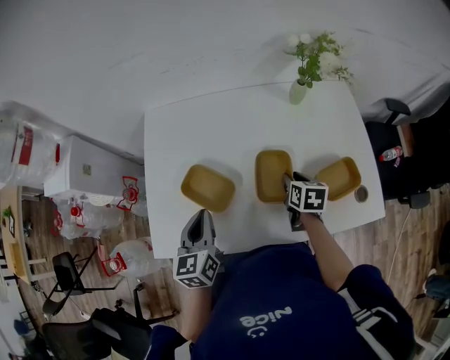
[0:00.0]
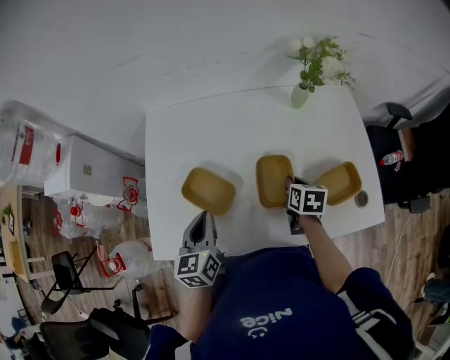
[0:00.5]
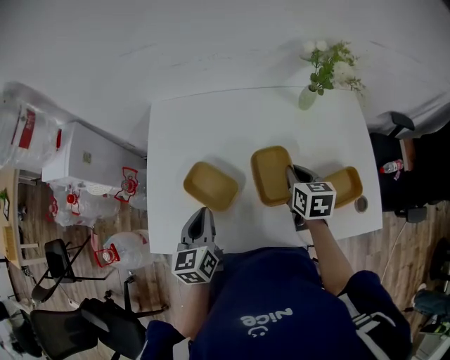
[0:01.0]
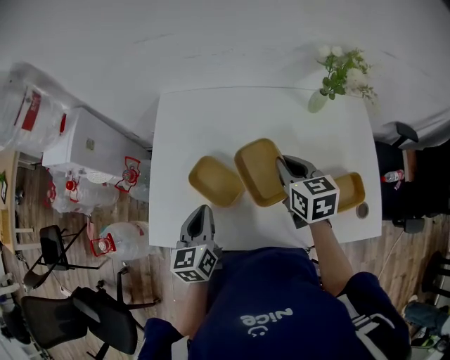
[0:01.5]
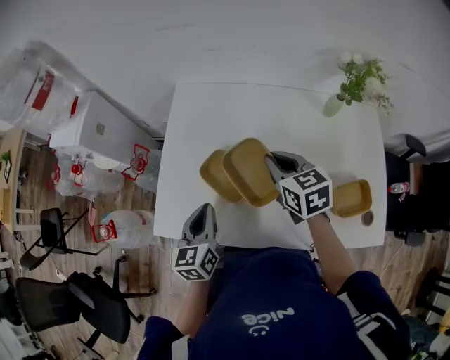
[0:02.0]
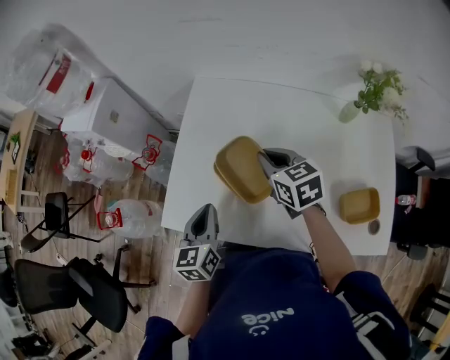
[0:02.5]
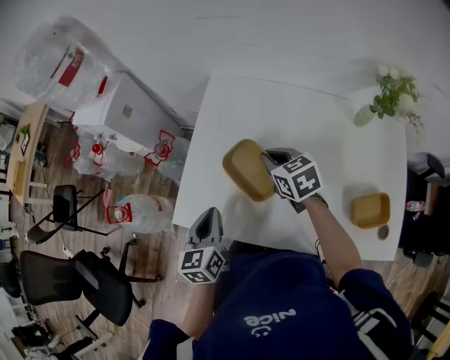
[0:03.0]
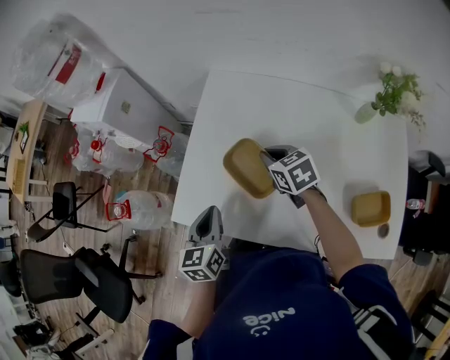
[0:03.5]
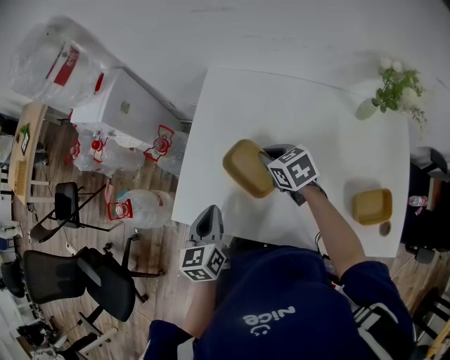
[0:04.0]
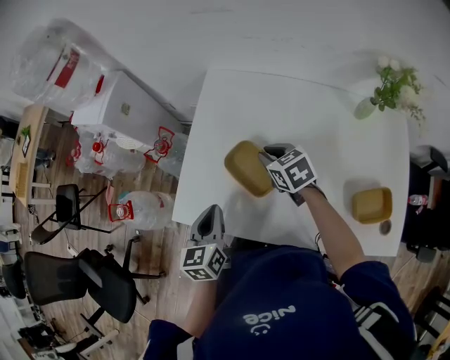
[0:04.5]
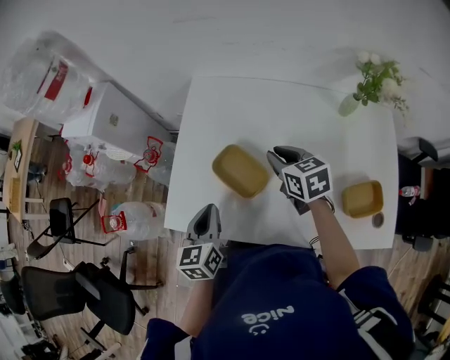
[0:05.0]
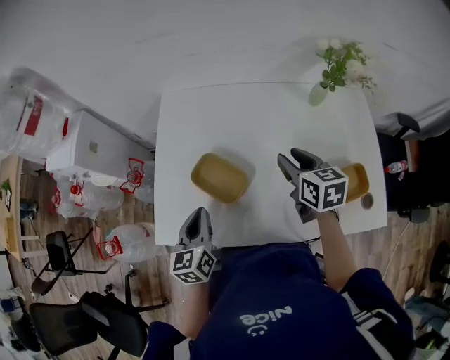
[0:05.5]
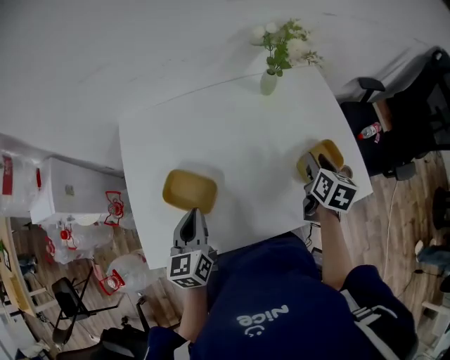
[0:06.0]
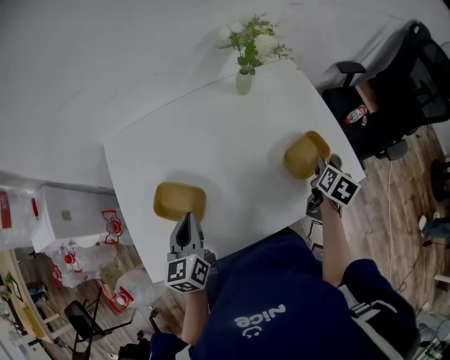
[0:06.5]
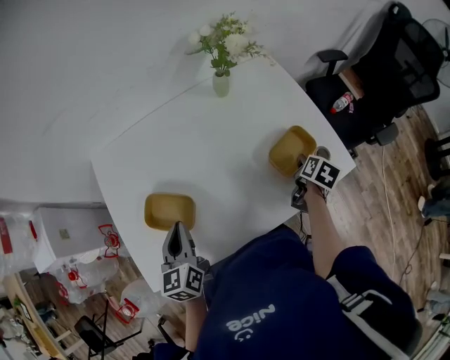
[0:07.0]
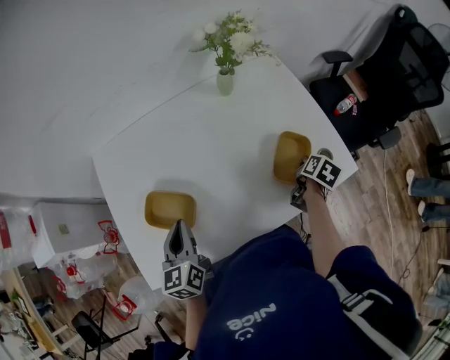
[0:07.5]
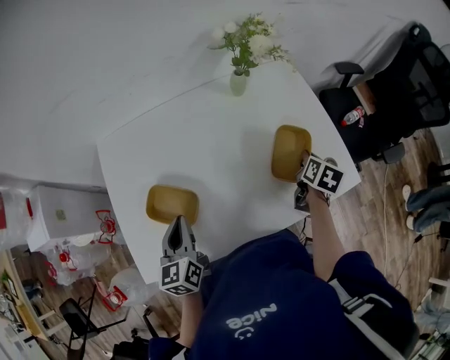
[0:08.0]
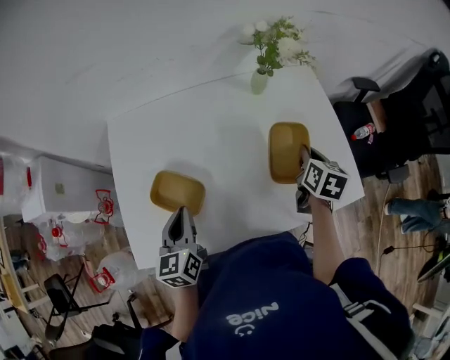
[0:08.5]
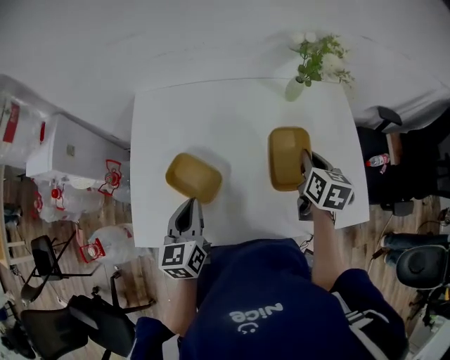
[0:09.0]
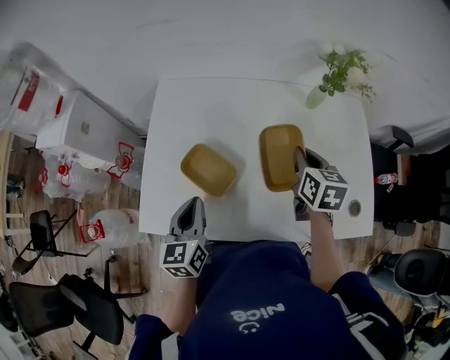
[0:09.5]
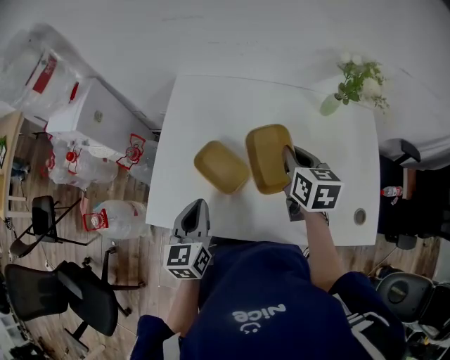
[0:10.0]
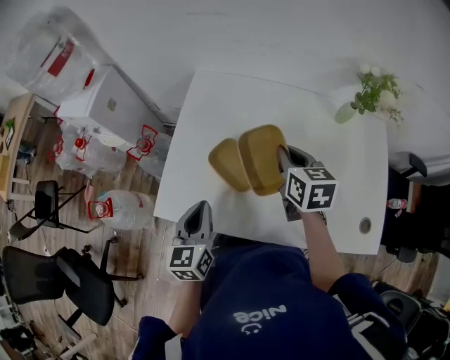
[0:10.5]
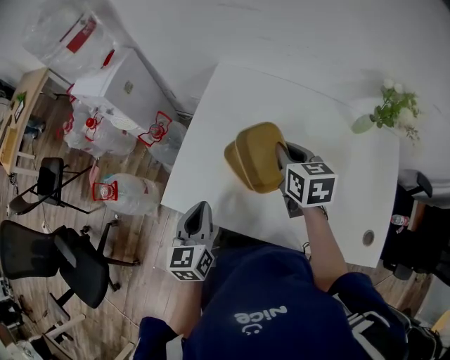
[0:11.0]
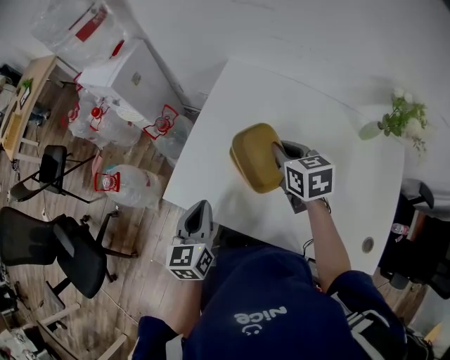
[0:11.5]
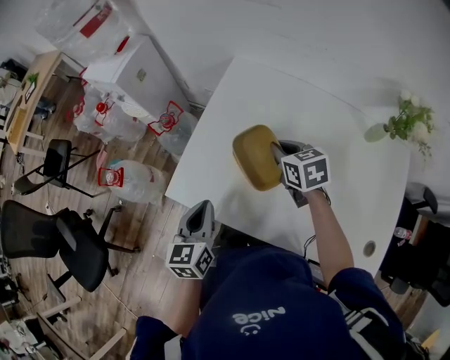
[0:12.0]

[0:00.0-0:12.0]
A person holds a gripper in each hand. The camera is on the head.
0:00.0 to 0:02.0: The right gripper moves to the left and upward, some 20 cm, rotates some 40 degrees, and closes, while the left gripper changes place by some 5 cm.
0:02.0 to 0:04.0: The left gripper heads to the left, covering roughly 5 cm. Meanwhile the right gripper is displaced downward, to the left and forward by some 15 cm, and swivels roughly 20 degrees.
0:04.0 to 0:06.0: The right gripper changes place by some 40 cm, turns by approximately 80 degrees, and opens, while the left gripper shifts by roughly 15 cm, and rotates some 30 degrees.
0:06.0 to 0:08.0: The right gripper heads to the right, covering about 10 cm, and closes up.
0:08.0 to 0:10.0: The left gripper changes place by about 10 cm, while the right gripper ends up about 30 cm from where it was, and rotates some 50 degrees.
0:10.0 to 0:12.0: The right gripper shifts about 20 cm to the left, forward and downward, and rotates about 40 degrees. The left gripper shifts some 5 cm to the left.

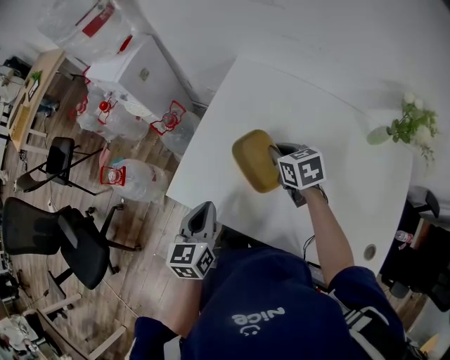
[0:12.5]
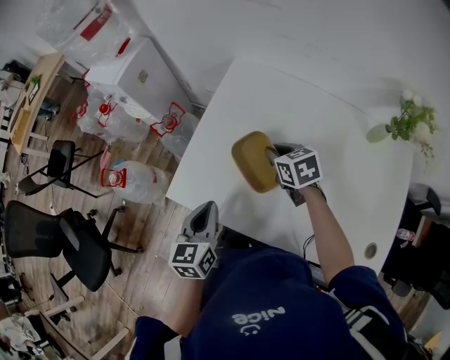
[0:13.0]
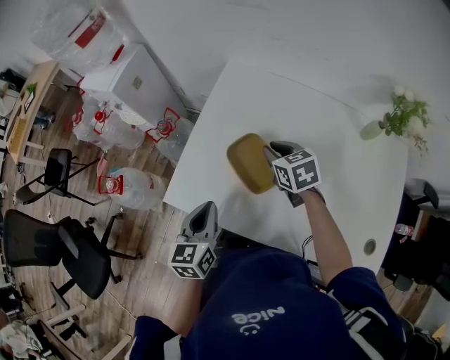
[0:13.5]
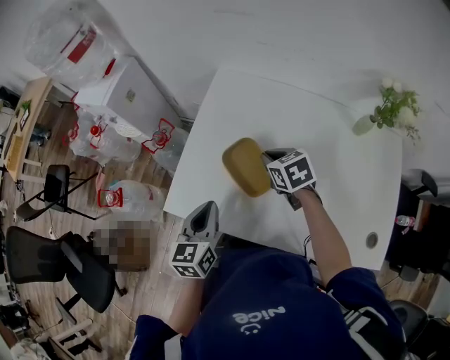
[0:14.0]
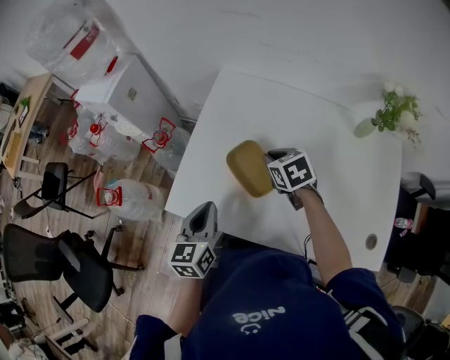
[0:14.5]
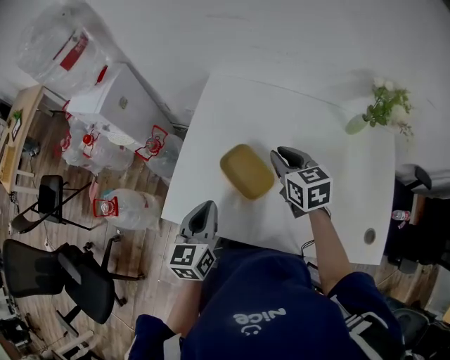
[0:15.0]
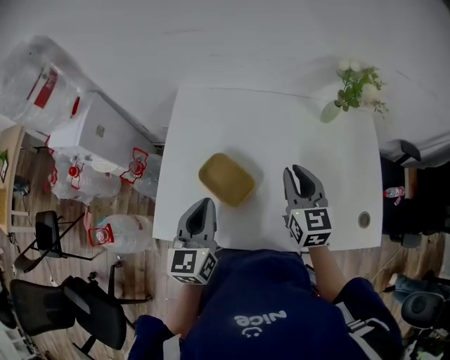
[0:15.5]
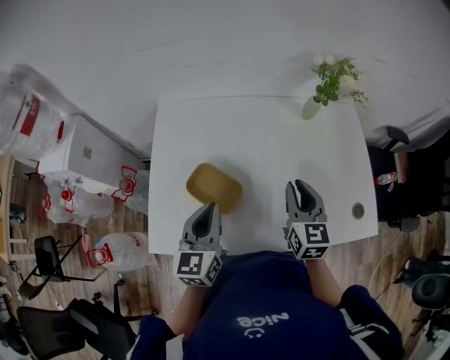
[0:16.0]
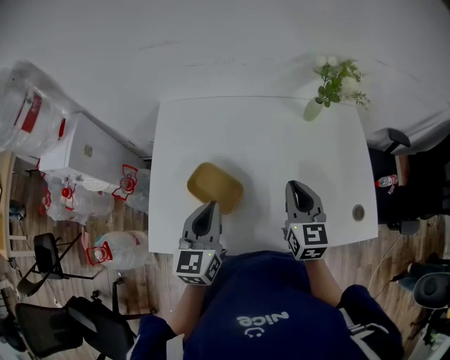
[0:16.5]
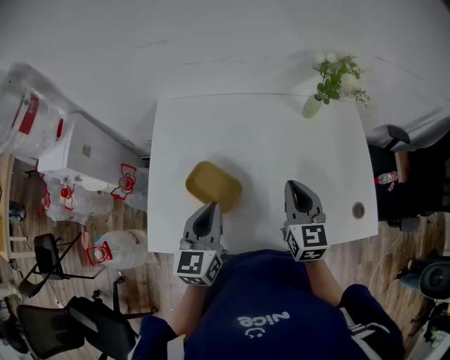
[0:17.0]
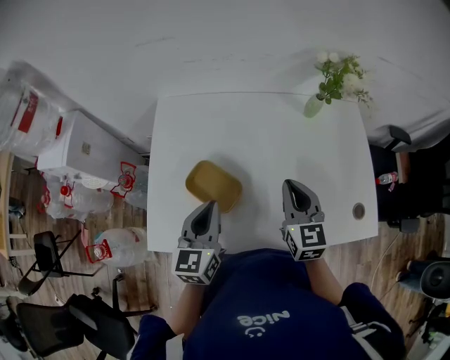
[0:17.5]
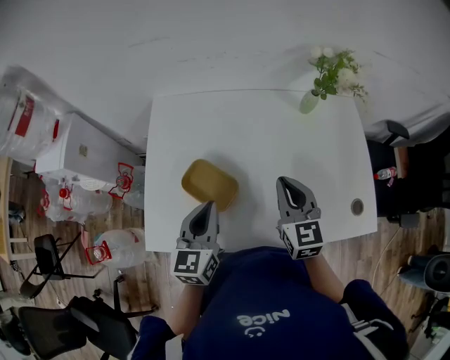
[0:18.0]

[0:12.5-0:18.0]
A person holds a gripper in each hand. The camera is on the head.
0:12.5 to 0:14.5: There are only small adjustments of the grippers.
0:14.5 to 0:16.0: The left gripper ends up approximately 15 cm from where it was, and turns by some 20 degrees; the right gripper changes place by about 25 cm, and tips its fingers upward by roughly 30 degrees.
0:16.0 to 0:18.0: The grippers make only small movements.

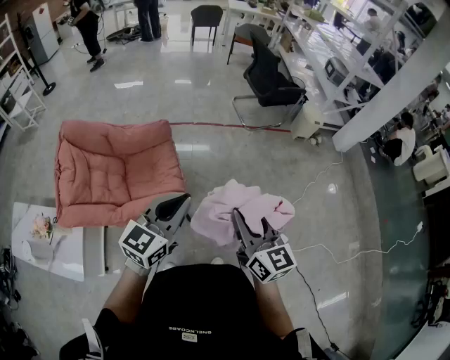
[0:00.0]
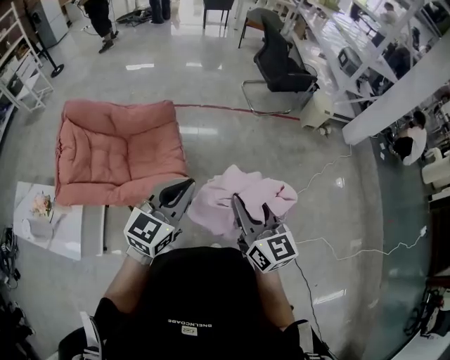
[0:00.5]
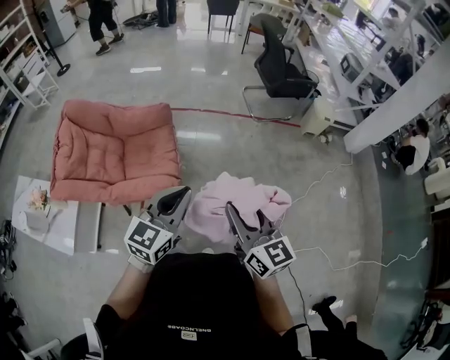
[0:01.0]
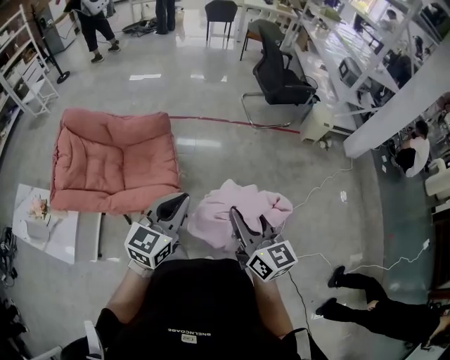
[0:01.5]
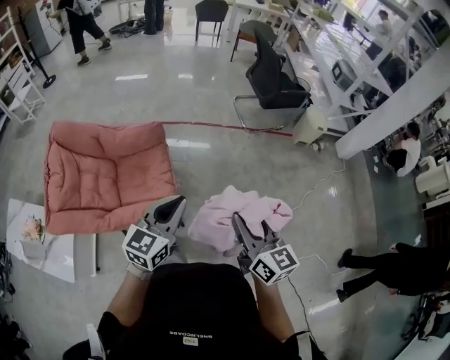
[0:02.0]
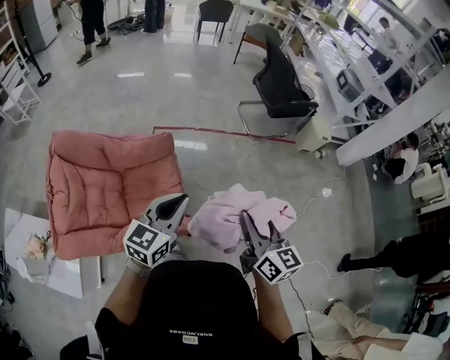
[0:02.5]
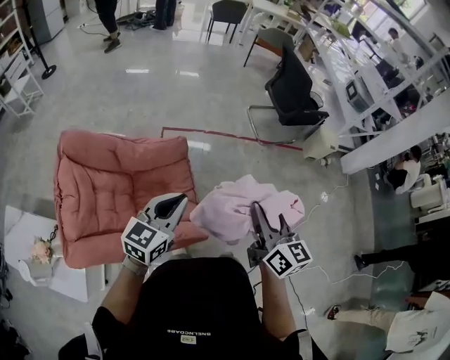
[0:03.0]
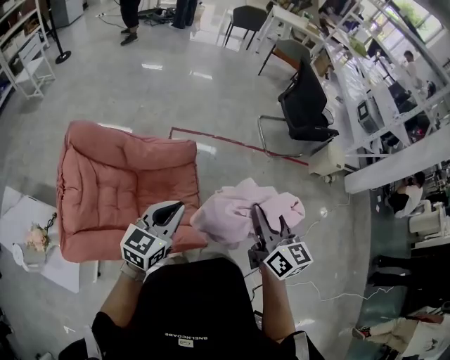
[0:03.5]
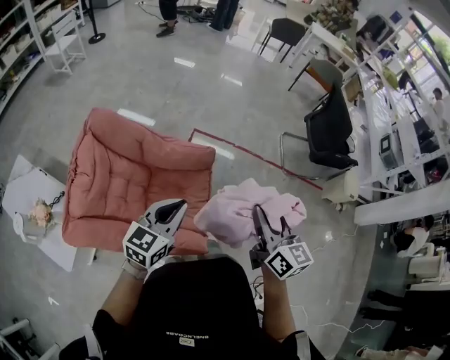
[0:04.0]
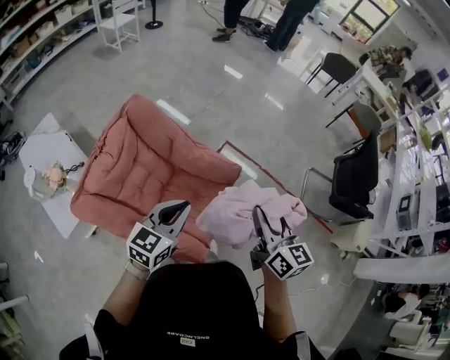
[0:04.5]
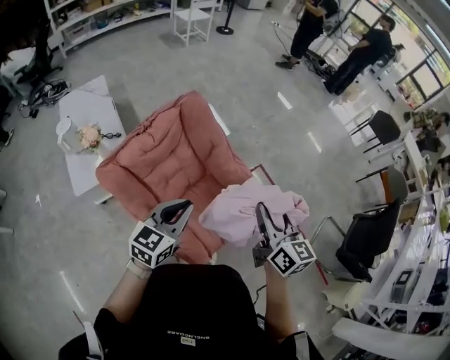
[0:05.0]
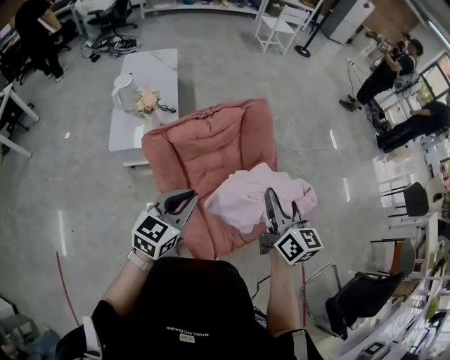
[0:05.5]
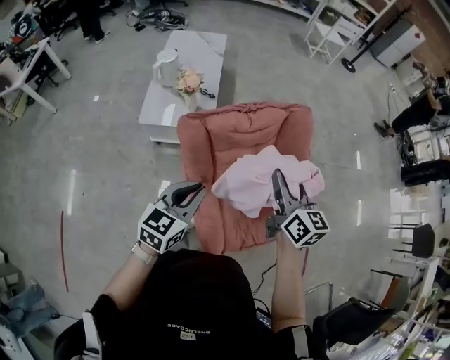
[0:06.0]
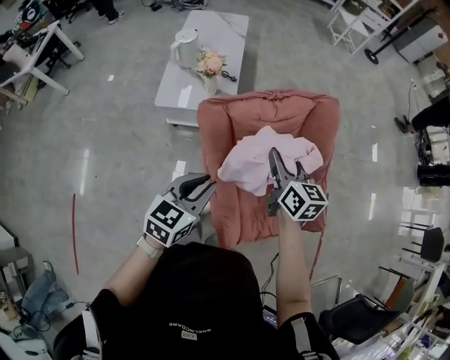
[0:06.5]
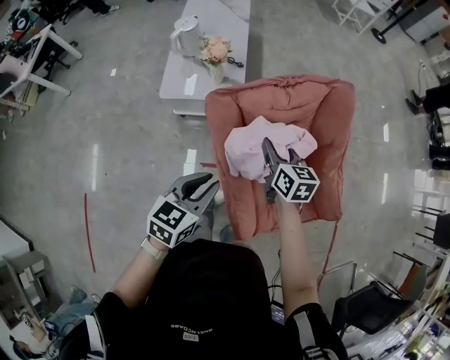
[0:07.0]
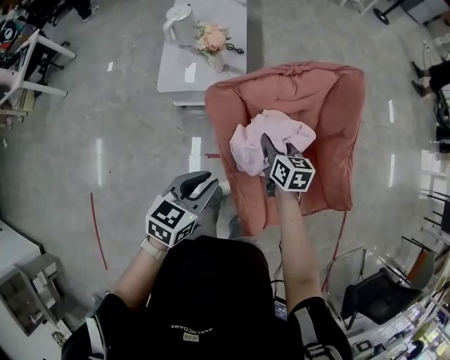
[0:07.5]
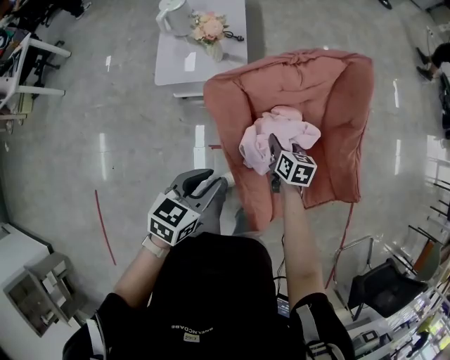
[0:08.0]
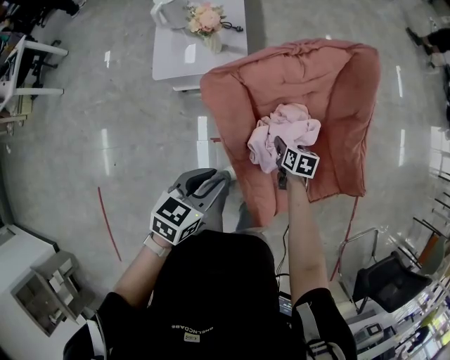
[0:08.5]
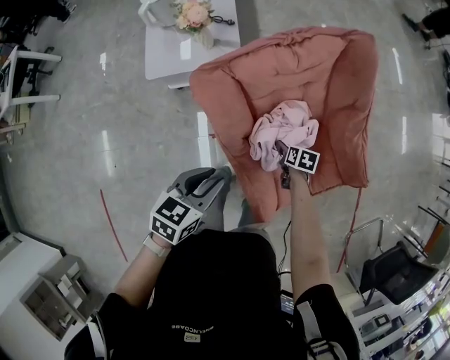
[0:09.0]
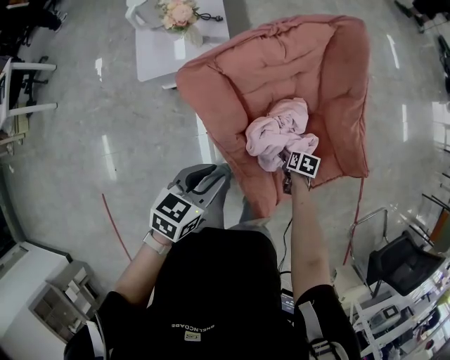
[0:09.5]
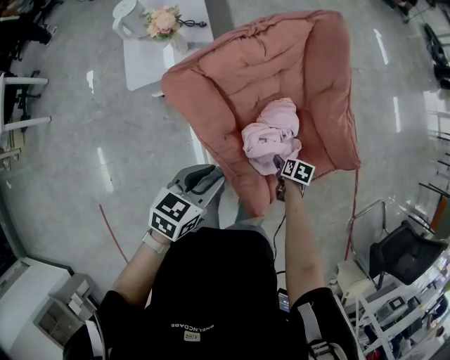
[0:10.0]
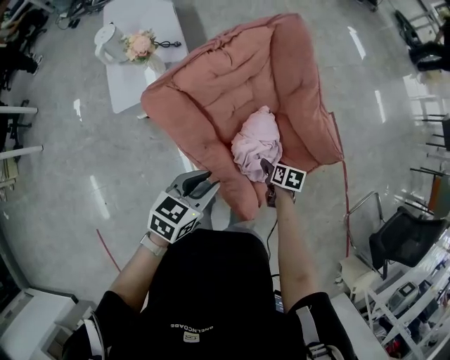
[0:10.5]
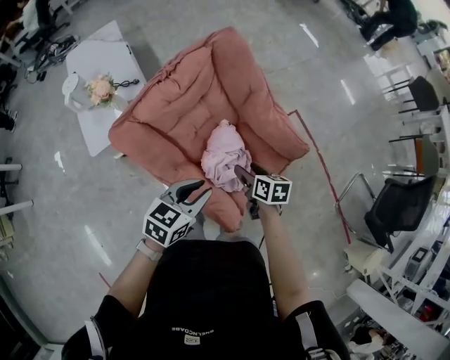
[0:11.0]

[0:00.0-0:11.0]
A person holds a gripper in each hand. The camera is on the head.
0:00.0 to 0:02.0: The left gripper heads forward and downward, covering approximately 10 cm, and travels to the right and back again, some 10 cm each way, while the right gripper is displaced forward by approximately 10 cm.
0:02.0 to 0:03.5: The grippers both shift to the left and forward by approximately 30 cm.
0:03.5 to 0:05.5: The left gripper ends up approximately 20 cm from where it was, and rotates about 70 degrees; the right gripper moves some 35 cm, and rotates some 70 degrees.
0:05.5 to 0:07.5: The left gripper heads to the left and downward, covering some 25 cm, and changes its angle by about 20 degrees. Meanwhile the right gripper travels downward, to the left and forward by approximately 40 cm, and swivels roughly 30 degrees.
0:07.5 to 0:09.0: The right gripper shifts some 25 cm downward and to the right, angles its fingers downward, by approximately 30 degrees, and opens its fingers. Meanwhile the left gripper is displaced downward by some 5 cm.
0:09.0 to 0:11.0: The right gripper goes approximately 25 cm upward and to the right, and swivels approximately 30 degrees. The left gripper is displaced to the right by about 20 cm, and swivels some 30 degrees.
